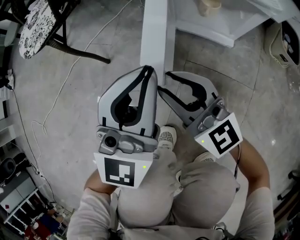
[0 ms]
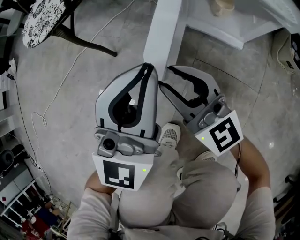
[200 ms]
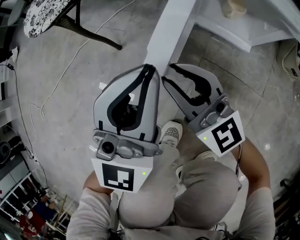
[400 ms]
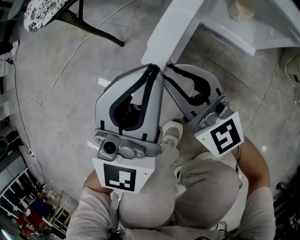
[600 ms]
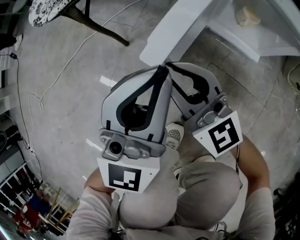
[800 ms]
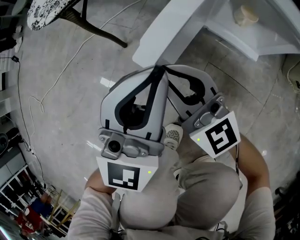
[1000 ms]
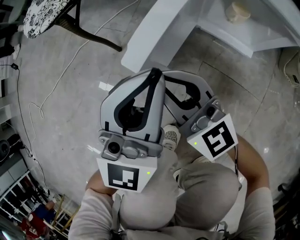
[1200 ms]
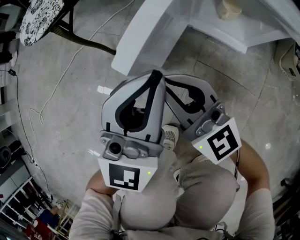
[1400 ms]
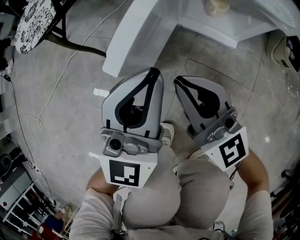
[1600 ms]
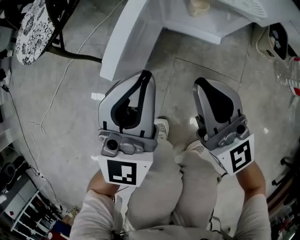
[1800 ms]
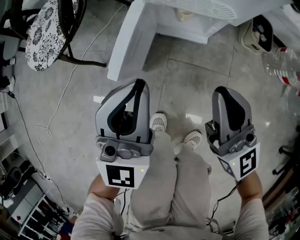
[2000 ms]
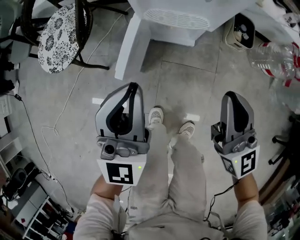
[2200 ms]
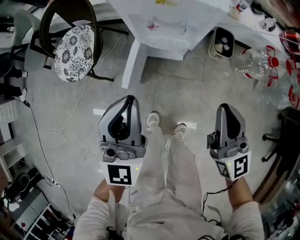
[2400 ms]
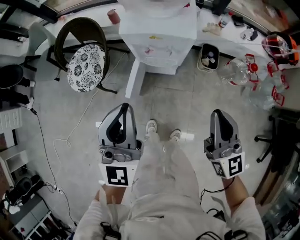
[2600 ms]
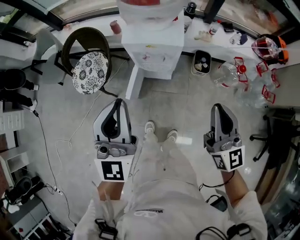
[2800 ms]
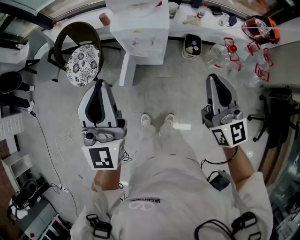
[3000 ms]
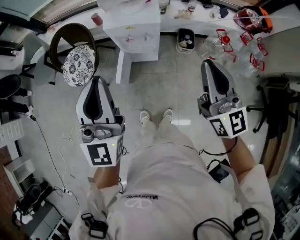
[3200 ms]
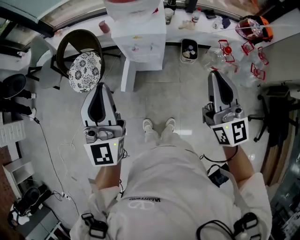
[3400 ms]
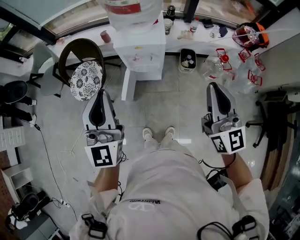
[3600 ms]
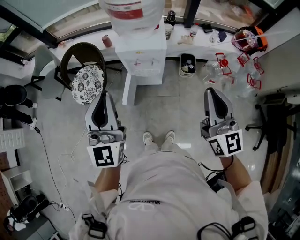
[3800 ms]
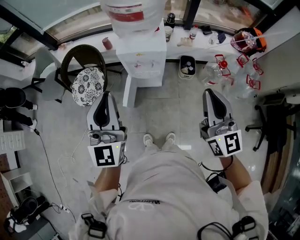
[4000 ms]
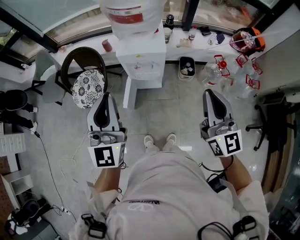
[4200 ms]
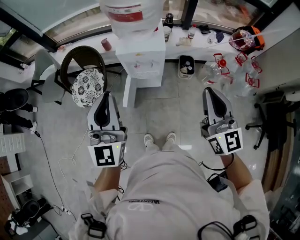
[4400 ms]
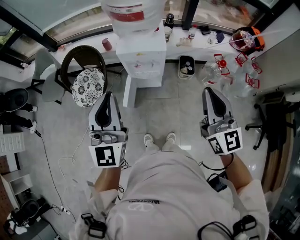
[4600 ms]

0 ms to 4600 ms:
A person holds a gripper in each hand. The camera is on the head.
0 ms to 1600 ms: The right gripper moves roughly 10 cm to the left and comes back, and closes its fingers.
1600 ms to 3000 ms: The left gripper heads upward, covering some 70 cm; the right gripper moves upward and to the right, roughly 80 cm, and rotates roughly 30 degrees.
3000 ms to 4600 ms: The right gripper heads upward, covering some 5 cm.

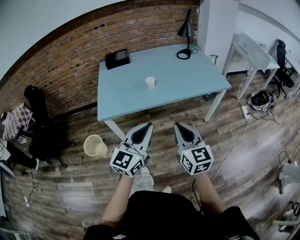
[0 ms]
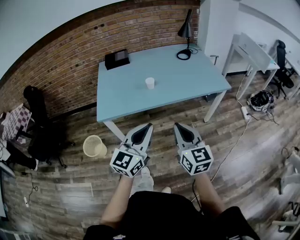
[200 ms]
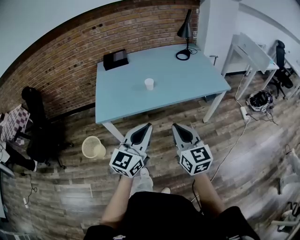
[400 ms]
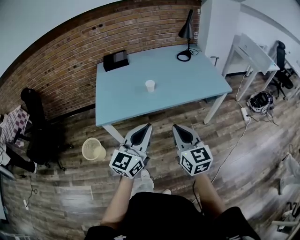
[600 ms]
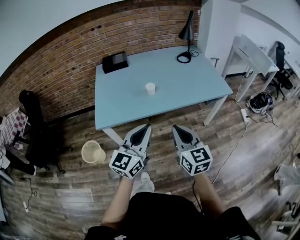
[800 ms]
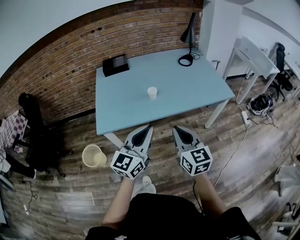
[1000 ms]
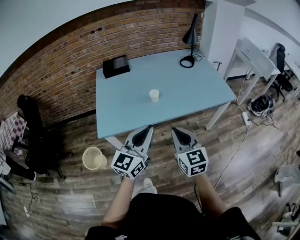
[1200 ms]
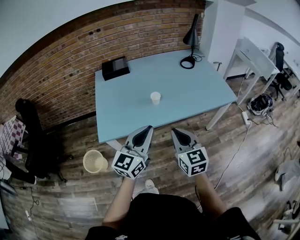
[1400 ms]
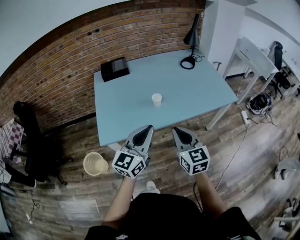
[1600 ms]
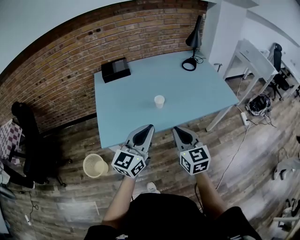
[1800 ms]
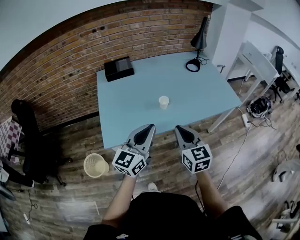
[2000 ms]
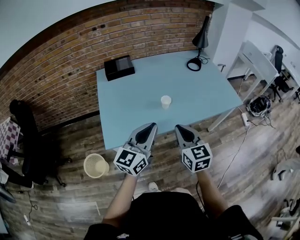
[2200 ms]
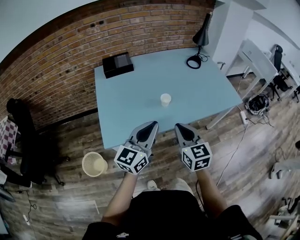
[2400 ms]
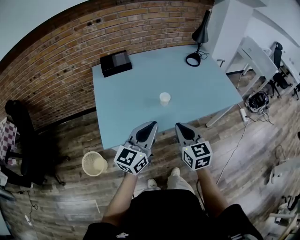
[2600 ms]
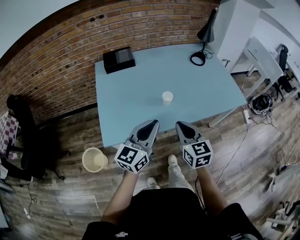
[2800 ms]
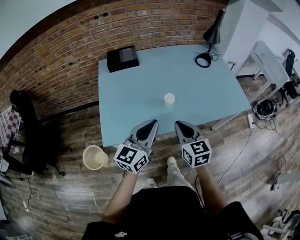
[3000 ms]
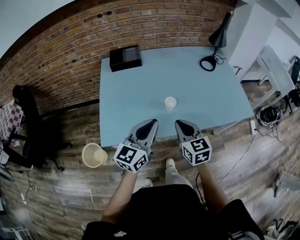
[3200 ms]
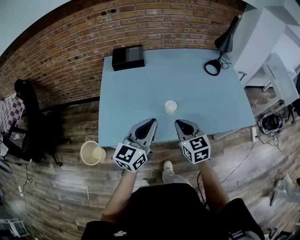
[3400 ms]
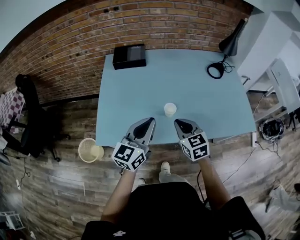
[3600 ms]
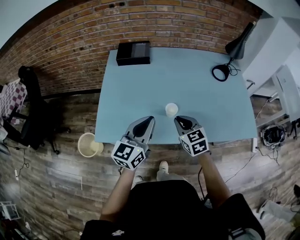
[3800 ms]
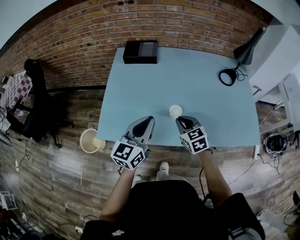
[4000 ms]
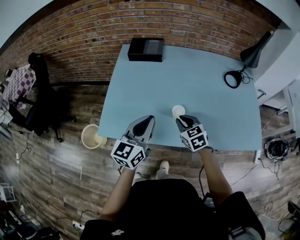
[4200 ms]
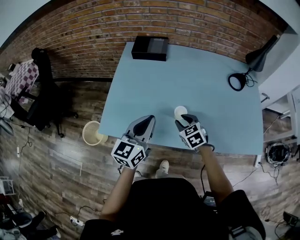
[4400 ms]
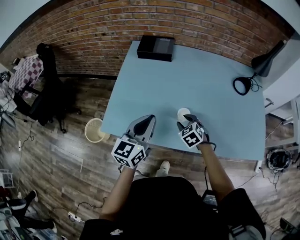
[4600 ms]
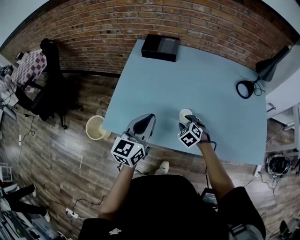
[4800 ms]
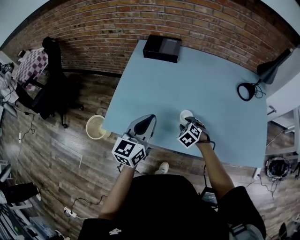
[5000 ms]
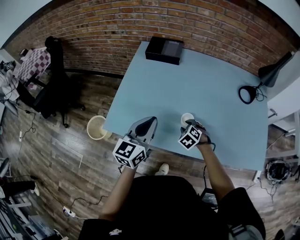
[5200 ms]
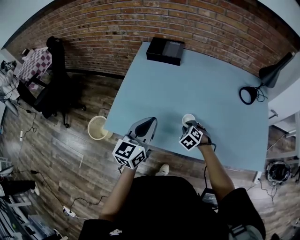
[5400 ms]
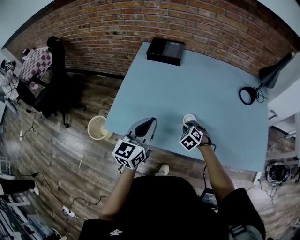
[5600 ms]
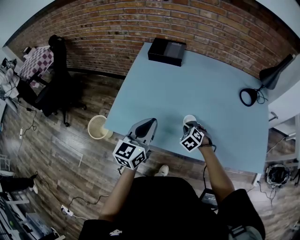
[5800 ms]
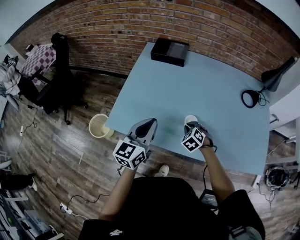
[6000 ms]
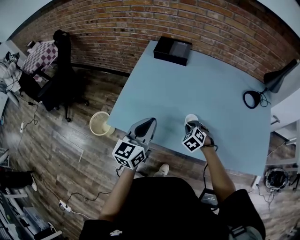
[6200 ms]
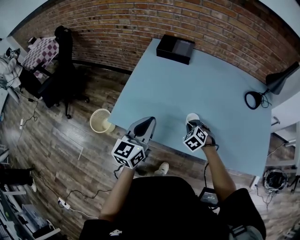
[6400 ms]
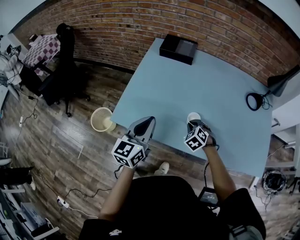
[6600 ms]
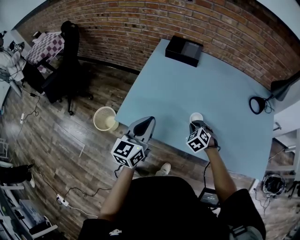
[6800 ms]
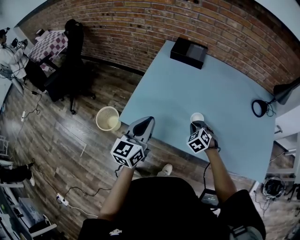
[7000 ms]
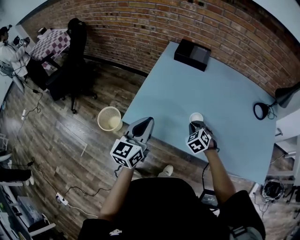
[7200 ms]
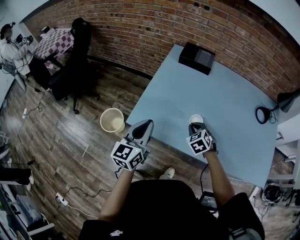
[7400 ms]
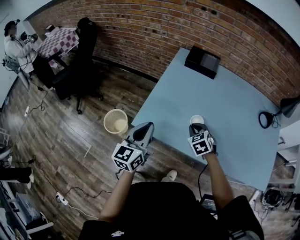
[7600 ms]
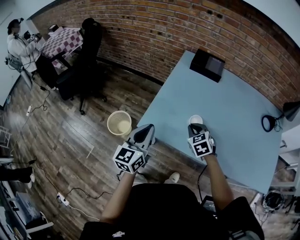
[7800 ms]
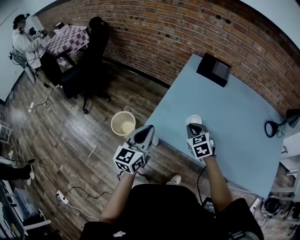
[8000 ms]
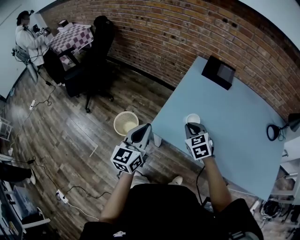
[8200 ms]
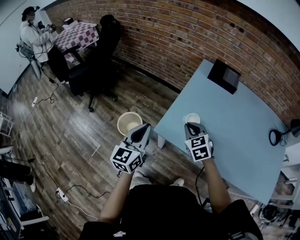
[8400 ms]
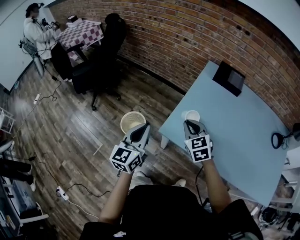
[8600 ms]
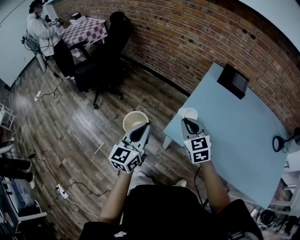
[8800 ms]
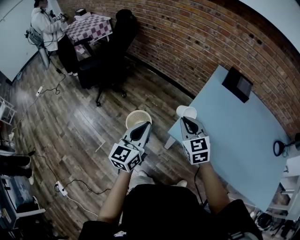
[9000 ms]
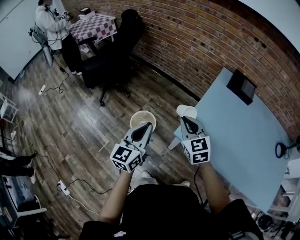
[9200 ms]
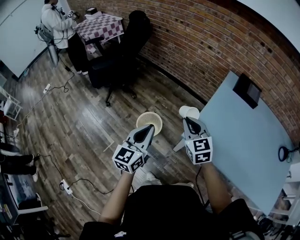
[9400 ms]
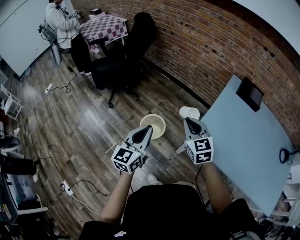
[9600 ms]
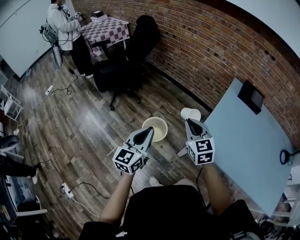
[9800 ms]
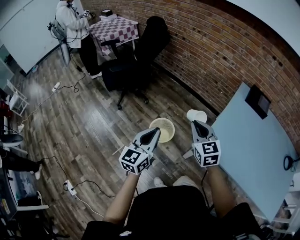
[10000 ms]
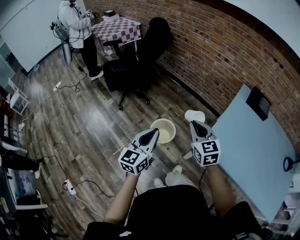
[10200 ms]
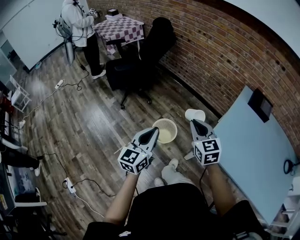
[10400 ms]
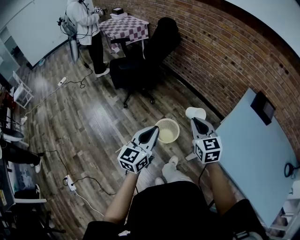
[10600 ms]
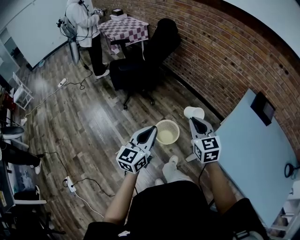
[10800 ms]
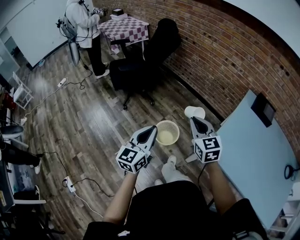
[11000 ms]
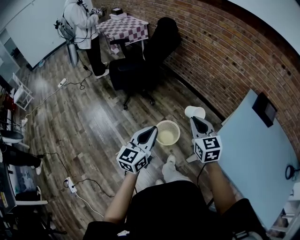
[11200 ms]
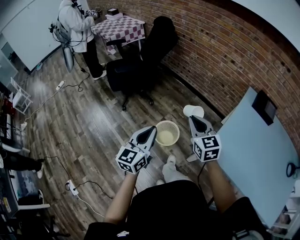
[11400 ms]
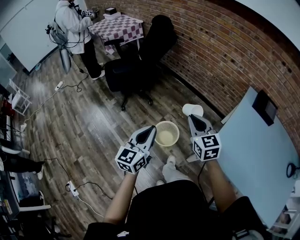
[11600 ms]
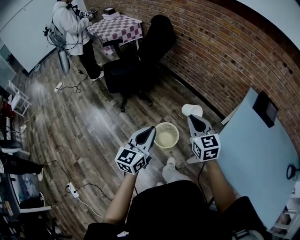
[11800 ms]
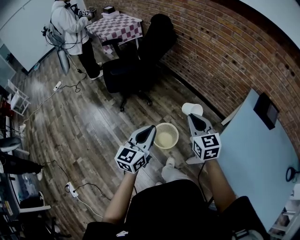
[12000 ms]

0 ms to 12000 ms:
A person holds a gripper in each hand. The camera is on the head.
0 ms to 1600 ms: Both grippers move forward and to the left, some 20 cm.
1600 ms to 3000 ms: The left gripper is displaced forward and to the left by some 10 cm. The right gripper heads forward, to the left and downward, covering approximately 15 cm.
3000 ms to 4400 ms: The right gripper moves roughly 25 cm, swivels some 40 degrees, and opens up. The left gripper shifts by roughly 10 cm, and swivels about 30 degrees.
4400 ms to 6000 ms: The right gripper moves downward, some 5 cm, and turns by some 30 degrees.
6000 ms to 7600 ms: The right gripper goes some 15 cm to the left and upward; the left gripper is displaced to the left by some 20 cm.
7600 ms to 9000 ms: The right gripper moves to the left and upward, about 35 cm, and turns by about 30 degrees, while the left gripper travels to the left by some 25 cm.
9000 ms to 10400 ms: Both grippers travel together to the left, about 20 cm.
10400 ms to 12000 ms: The two grippers go roughly 10 cm forward.

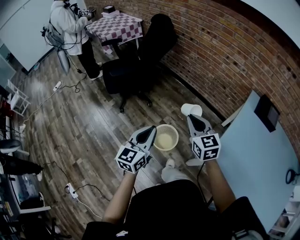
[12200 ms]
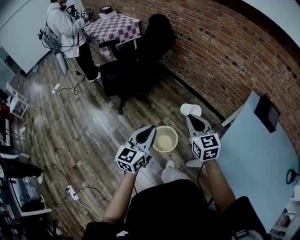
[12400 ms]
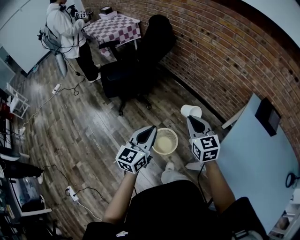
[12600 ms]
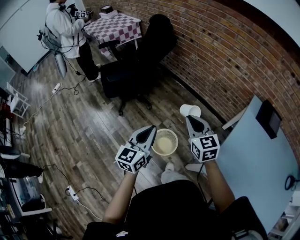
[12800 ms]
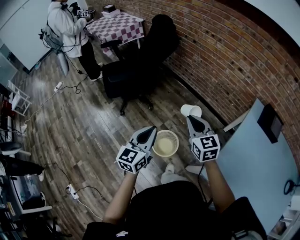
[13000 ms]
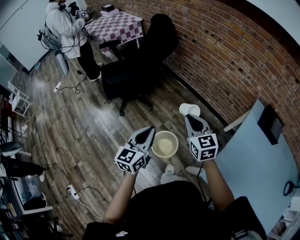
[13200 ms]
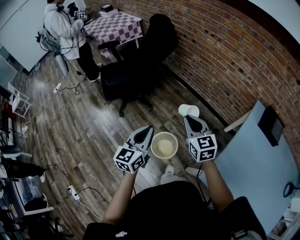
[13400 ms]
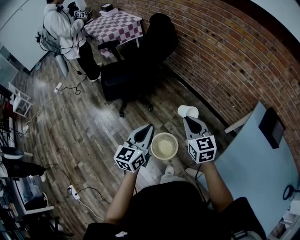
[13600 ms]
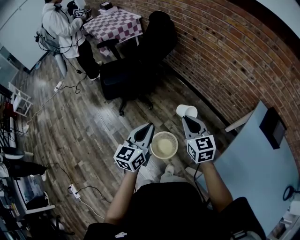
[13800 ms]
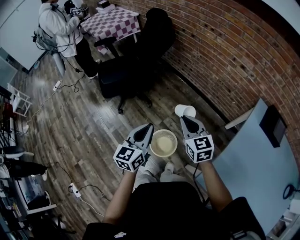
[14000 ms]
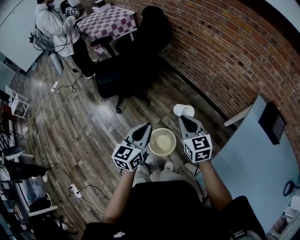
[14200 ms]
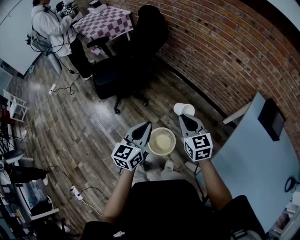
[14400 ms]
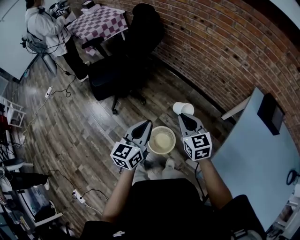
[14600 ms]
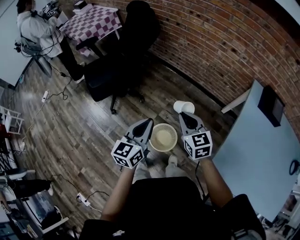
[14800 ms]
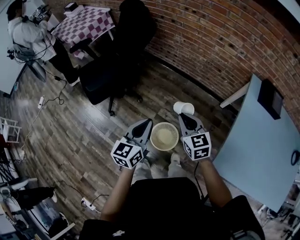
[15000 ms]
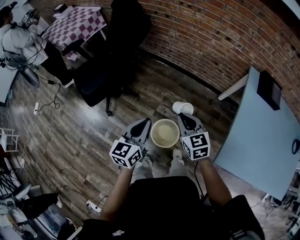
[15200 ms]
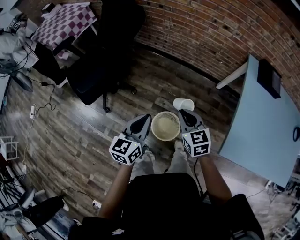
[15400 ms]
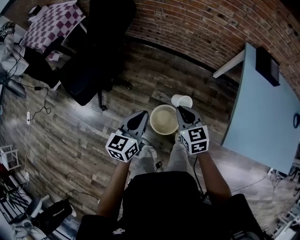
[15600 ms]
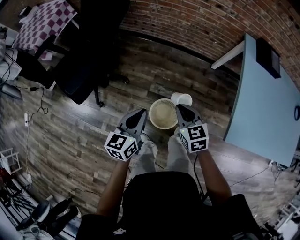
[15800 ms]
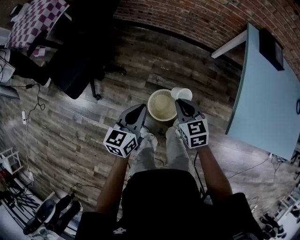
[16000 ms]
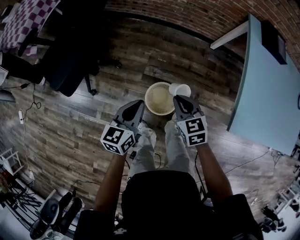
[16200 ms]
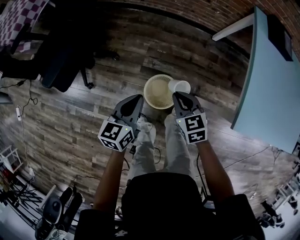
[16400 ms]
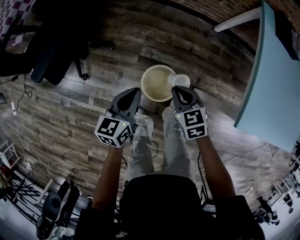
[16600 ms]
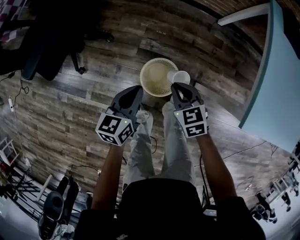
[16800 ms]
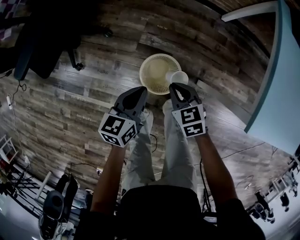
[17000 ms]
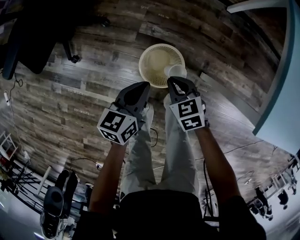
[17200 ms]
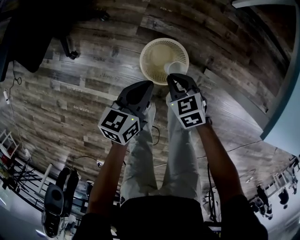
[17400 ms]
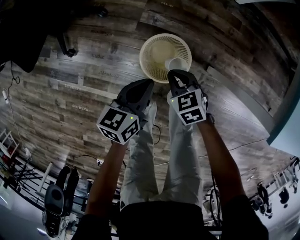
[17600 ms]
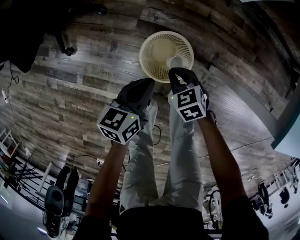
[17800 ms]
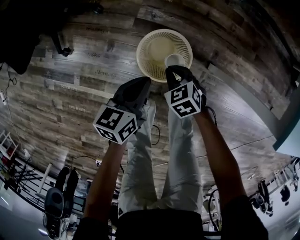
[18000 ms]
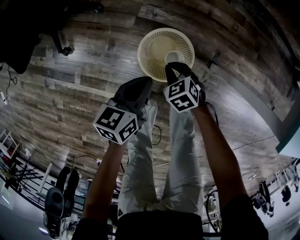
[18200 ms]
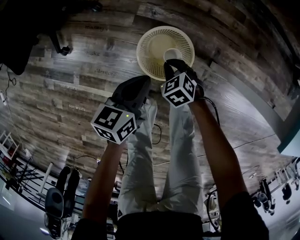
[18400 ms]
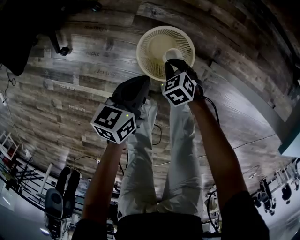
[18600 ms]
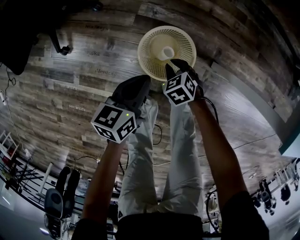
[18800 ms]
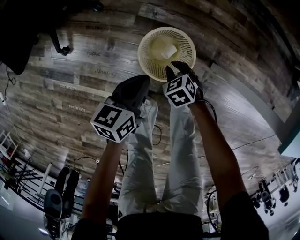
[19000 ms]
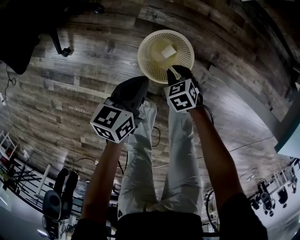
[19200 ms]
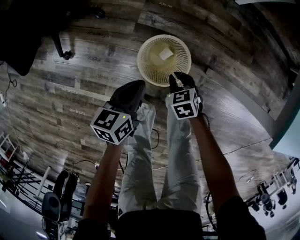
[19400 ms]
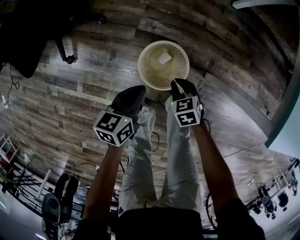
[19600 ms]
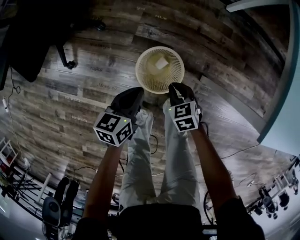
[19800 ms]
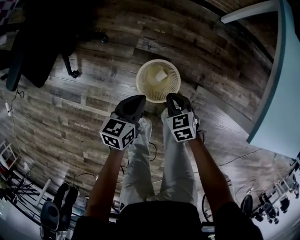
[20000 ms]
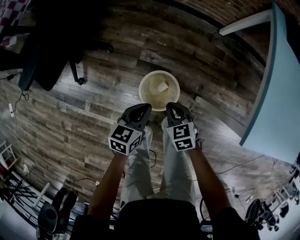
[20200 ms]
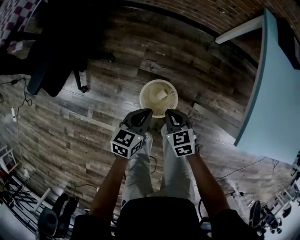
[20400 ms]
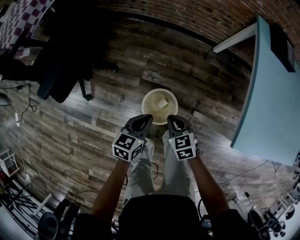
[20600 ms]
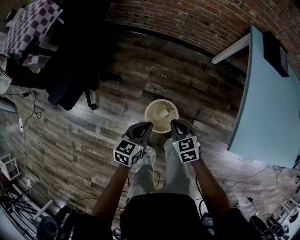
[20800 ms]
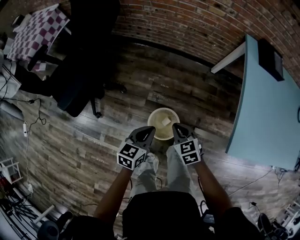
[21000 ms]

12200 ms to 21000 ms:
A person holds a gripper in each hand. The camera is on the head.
12200 ms to 13600 ms: Both grippers travel together forward, some 15 cm.
13600 ms to 15200 ms: The right gripper travels downward by roughly 10 cm; the left gripper goes some 10 cm forward and downward, and swivels approximately 20 degrees.
15200 ms to 16600 ms: Both grippers travel together downward, some 25 cm. The right gripper rotates roughly 20 degrees. Meanwhile the left gripper swivels approximately 20 degrees.
16600 ms to 18000 ms: The two grippers go roughly 25 cm downward. The right gripper turns by some 20 degrees.
18000 ms to 19600 ms: The right gripper moves roughly 5 cm downward and comes back.
19600 ms to 21000 ms: The two grippers go roughly 30 cm upward.
